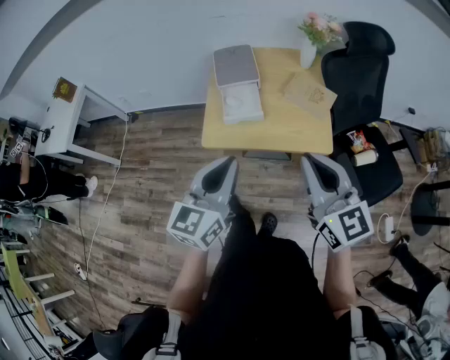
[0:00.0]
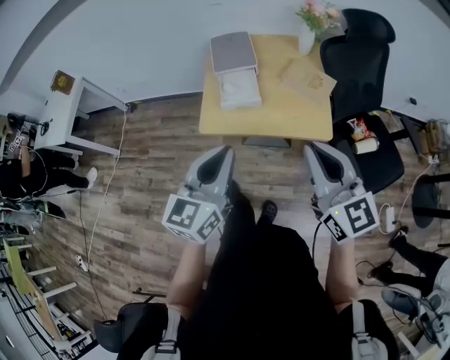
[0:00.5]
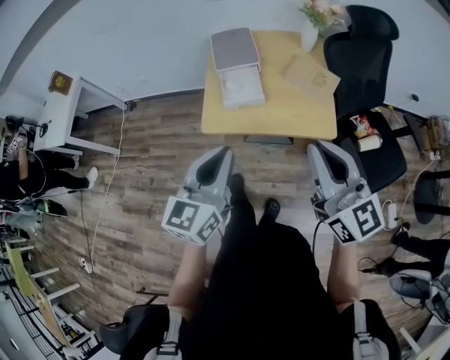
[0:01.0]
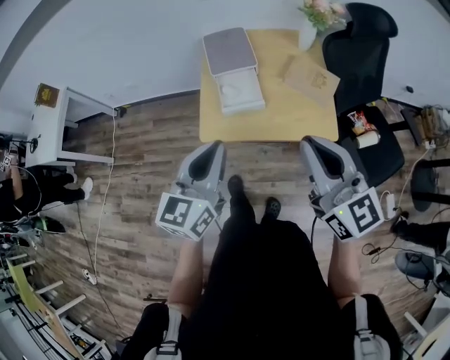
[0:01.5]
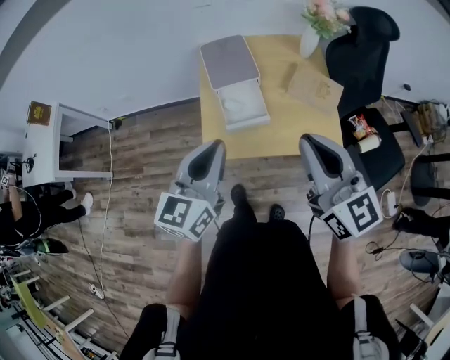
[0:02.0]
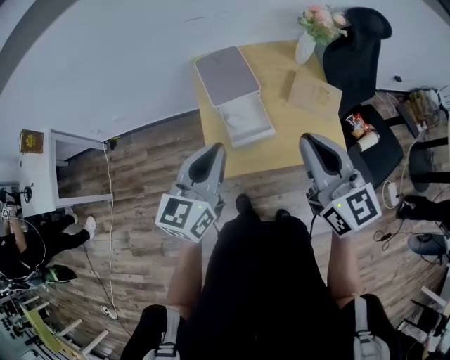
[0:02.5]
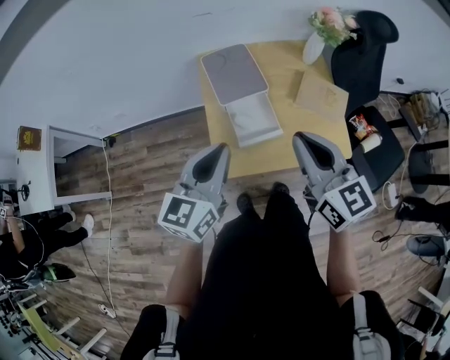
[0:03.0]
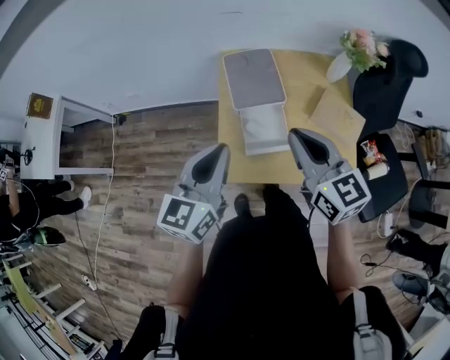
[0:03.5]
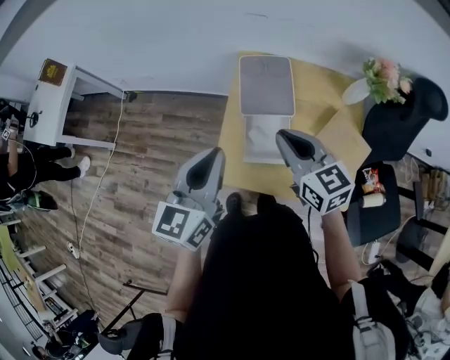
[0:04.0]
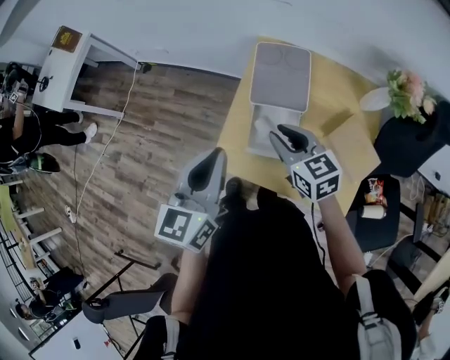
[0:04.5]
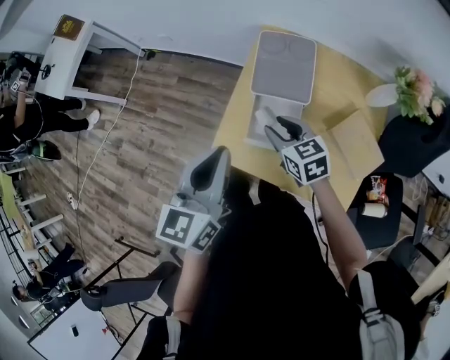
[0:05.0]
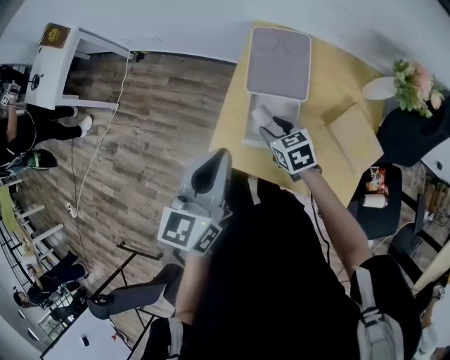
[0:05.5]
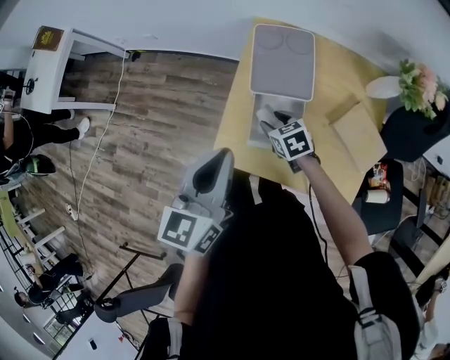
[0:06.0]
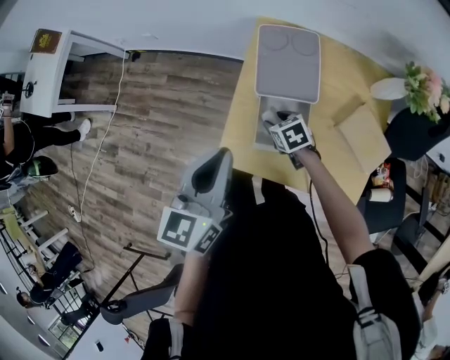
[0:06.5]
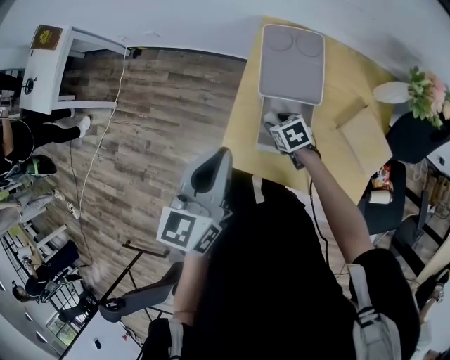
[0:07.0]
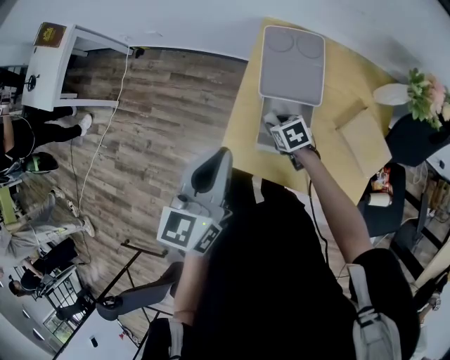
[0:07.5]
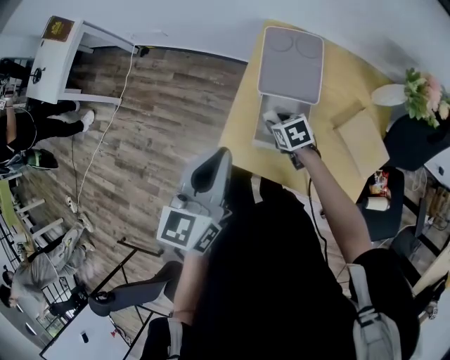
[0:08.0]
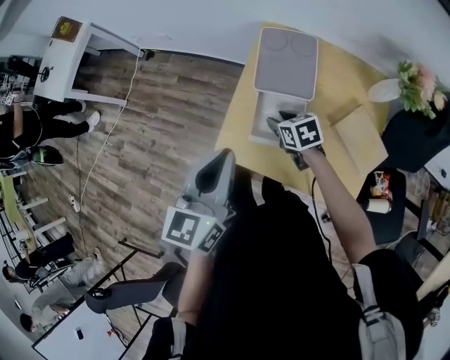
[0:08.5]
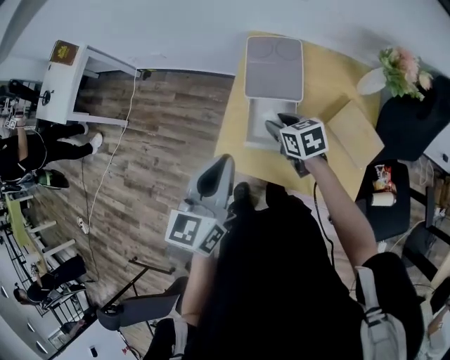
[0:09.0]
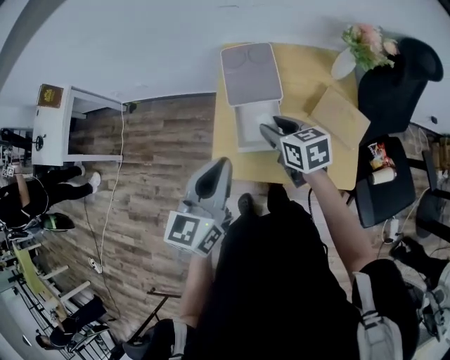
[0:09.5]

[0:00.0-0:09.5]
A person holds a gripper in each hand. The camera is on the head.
0:00.0 to 0:02.0: Both grippers move forward and to the left, some 15 cm.
0:02.0 to 0:04.0: The left gripper shifts by roughly 15 cm; the right gripper shifts by roughly 25 cm, and changes its angle by approximately 30 degrees.
0:04.0 to 0:05.5: The right gripper travels downward by roughly 20 cm, changes its angle by roughly 30 degrees, and opens its fingers; the left gripper shifts by some 5 cm.
0:05.5 to 0:07.5: The left gripper shifts by some 5 cm. The right gripper is displaced downward by about 10 cm.
0:07.5 to 0:09.5: The left gripper moves backward, about 10 cm. The right gripper travels upward by some 20 cm, and turns by some 30 degrees.

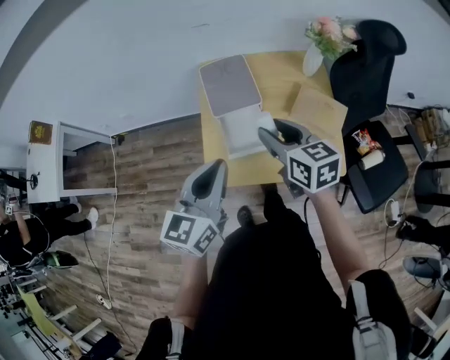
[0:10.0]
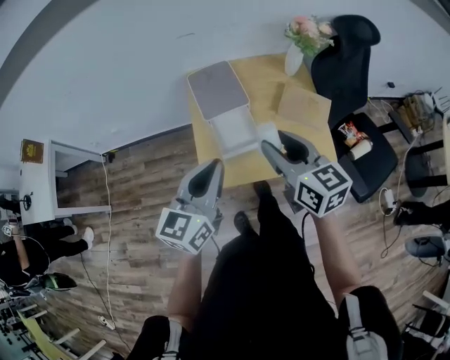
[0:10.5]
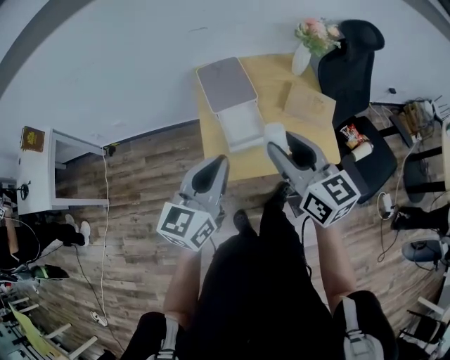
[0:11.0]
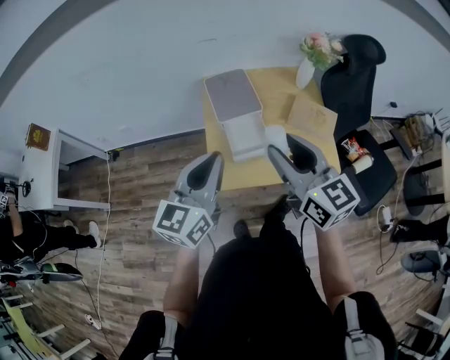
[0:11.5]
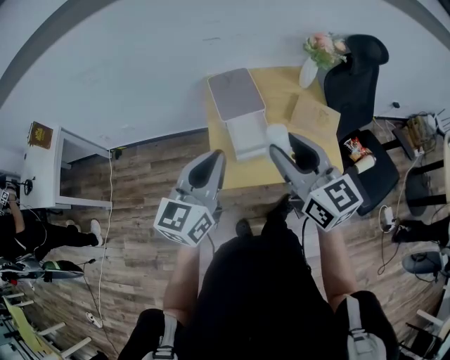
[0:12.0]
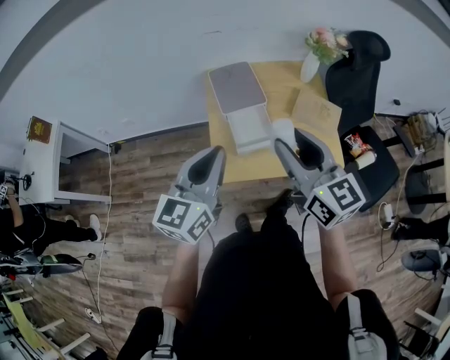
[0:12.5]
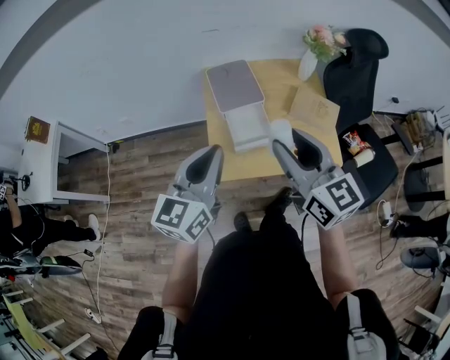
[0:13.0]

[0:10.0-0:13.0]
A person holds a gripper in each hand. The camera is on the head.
0:10.0 to 0:11.5: The right gripper shifts approximately 15 cm backward and upward, and swivels approximately 20 degrees. Meanwhile the left gripper is displaced to the left by about 5 cm.
0:11.5 to 0:13.0: There are only small adjustments of the grippers.

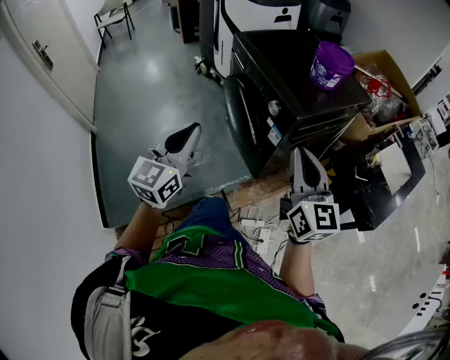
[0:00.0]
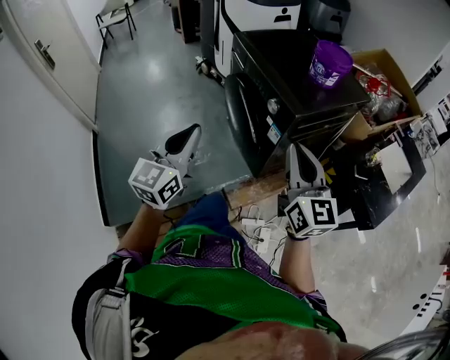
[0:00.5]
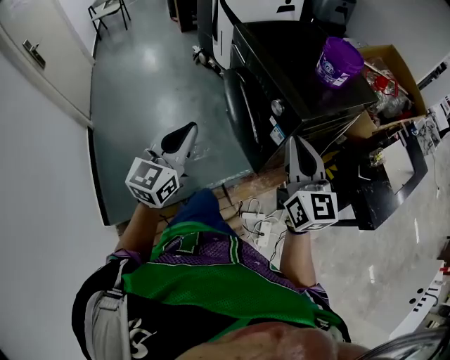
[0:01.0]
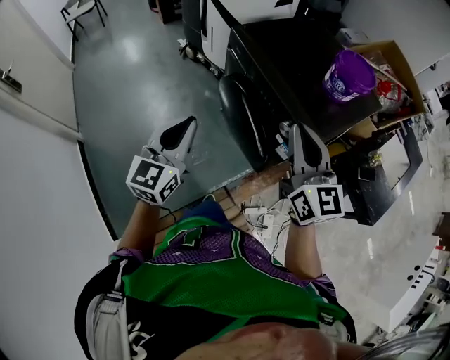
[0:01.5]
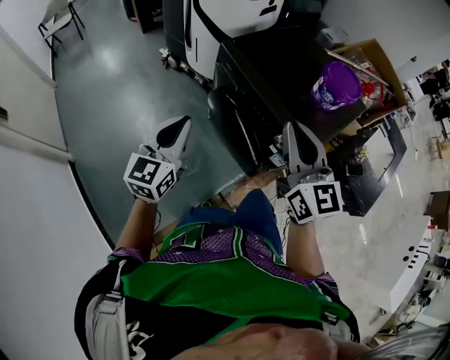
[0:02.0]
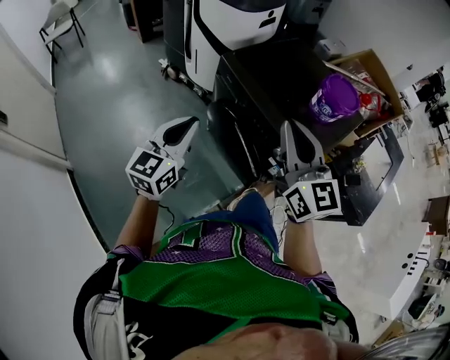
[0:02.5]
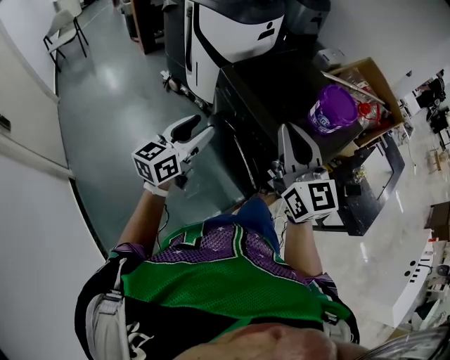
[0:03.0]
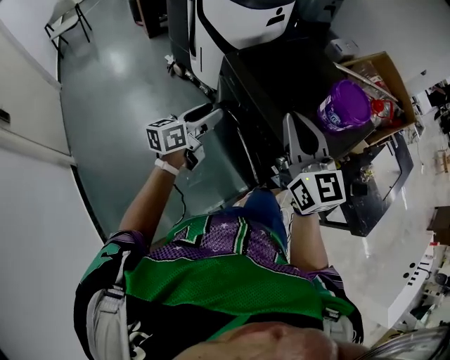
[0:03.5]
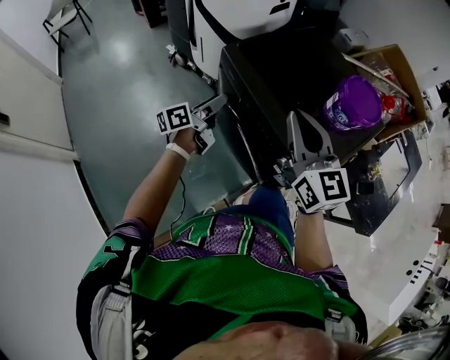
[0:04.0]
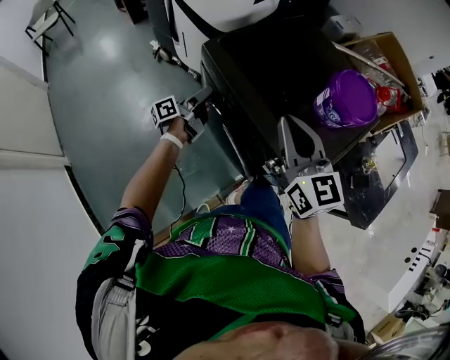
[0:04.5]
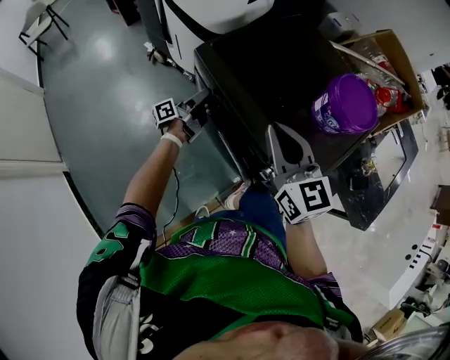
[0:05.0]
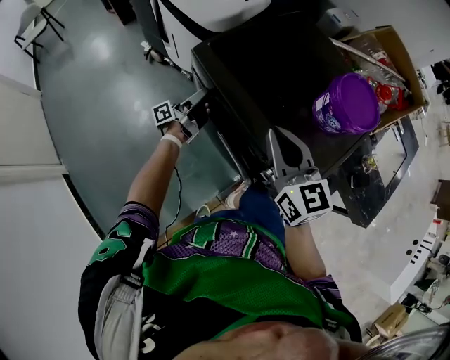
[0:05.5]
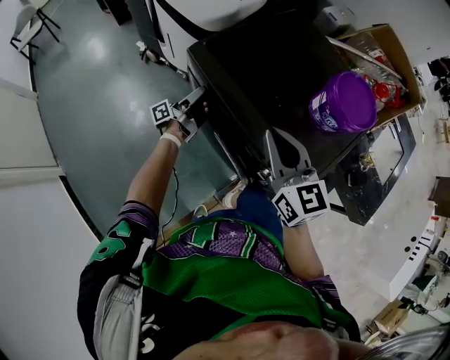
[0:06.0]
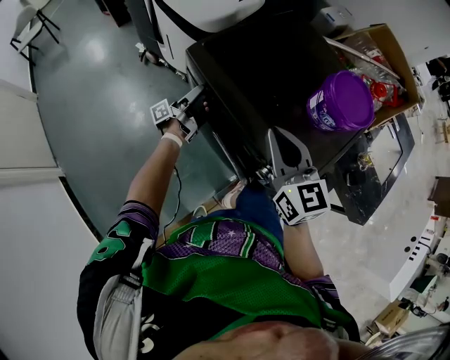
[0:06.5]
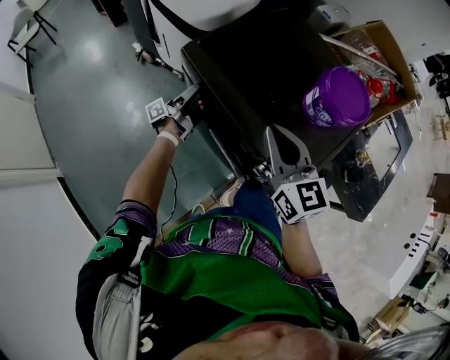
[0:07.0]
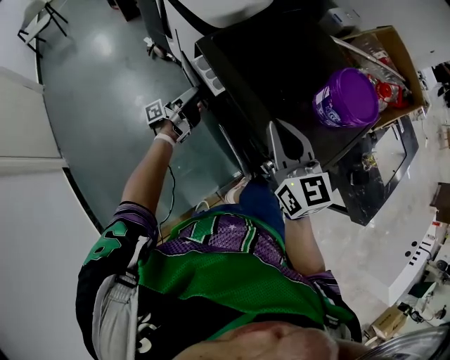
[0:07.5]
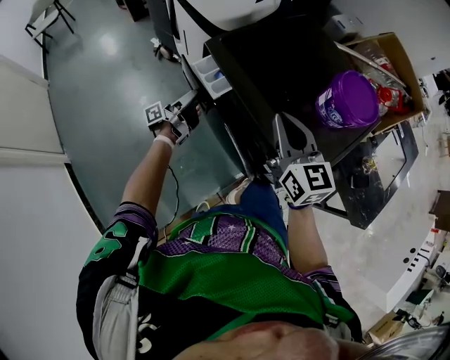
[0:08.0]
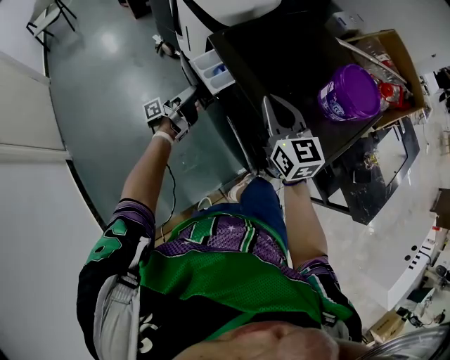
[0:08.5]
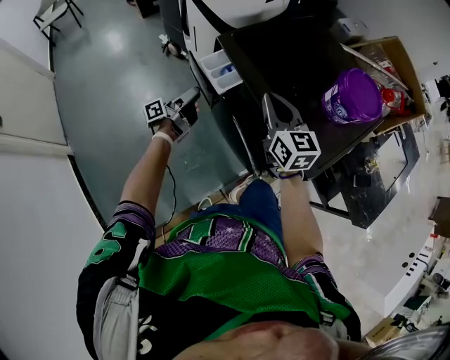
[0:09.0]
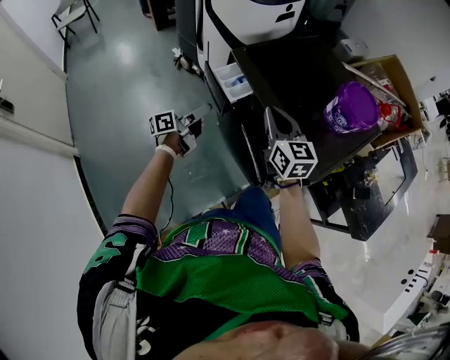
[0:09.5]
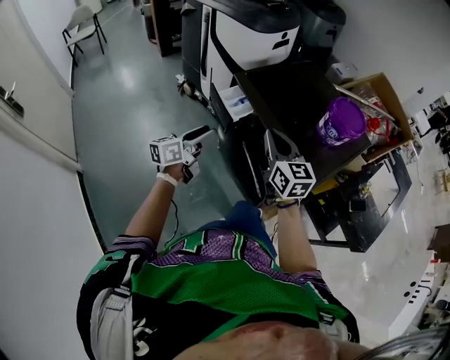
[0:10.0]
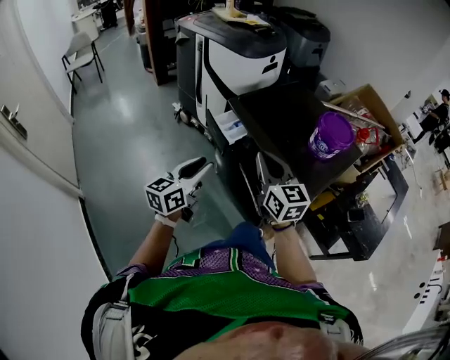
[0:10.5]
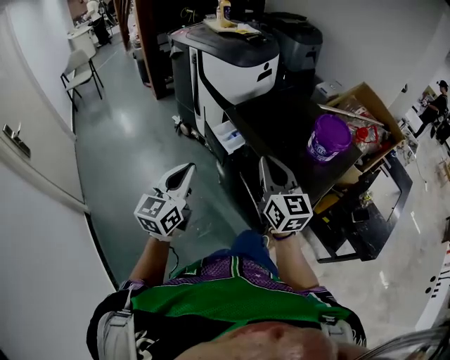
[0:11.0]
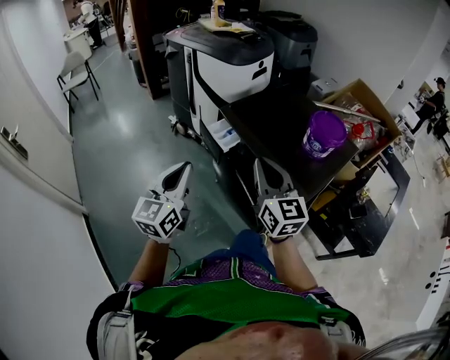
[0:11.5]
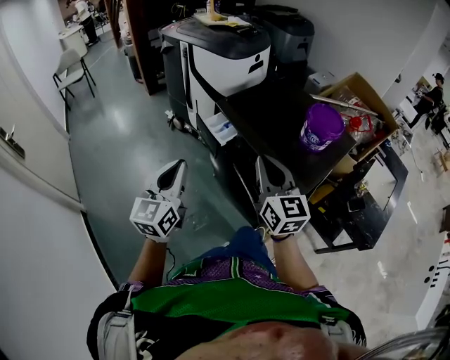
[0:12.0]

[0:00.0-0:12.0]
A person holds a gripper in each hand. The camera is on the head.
0:00.0 to 0:02.0: The right gripper goes roughly 30 cm forward, to the left and upward. Meanwhile the left gripper goes some 30 cm forward and to the left.
0:02.0 to 0:04.0: The left gripper goes some 25 cm forward and downward, rotates around the line of its fingers by approximately 60 degrees, counterclockwise from behind, and opens its fingers. Meanwhile the right gripper travels forward by roughly 15 cm.
0:04.0 to 0:06.0: The right gripper shifts about 10 cm downward and forward, while the left gripper travels downward and forward by roughly 20 cm, and rotates roughly 30 degrees.
0:06.0 to 0:08.0: The left gripper moves backward and to the left, approximately 10 cm.
0:08.0 to 0:10.0: The left gripper travels backward and upward by roughly 25 cm, and rolls clockwise, seen from behind, by some 50 degrees. Meanwhile the right gripper travels backward and to the left by approximately 10 cm.
0:10.0 to 0:12.0: The left gripper heads upward and backward, covering about 20 cm, changes its angle by about 40 degrees, and closes its fingers. The right gripper goes approximately 10 cm backward and upward.

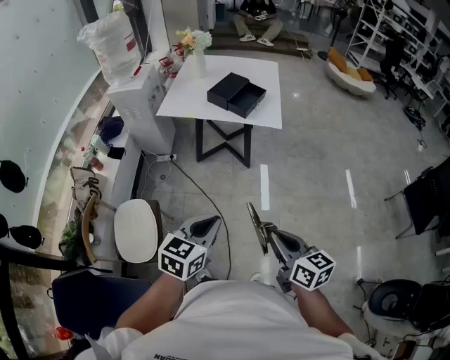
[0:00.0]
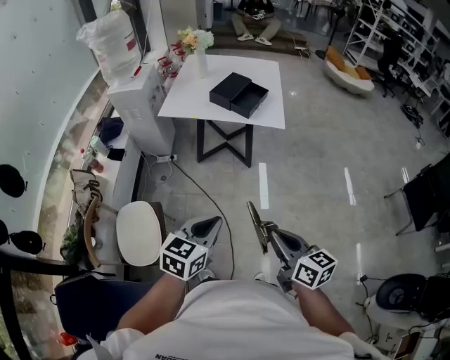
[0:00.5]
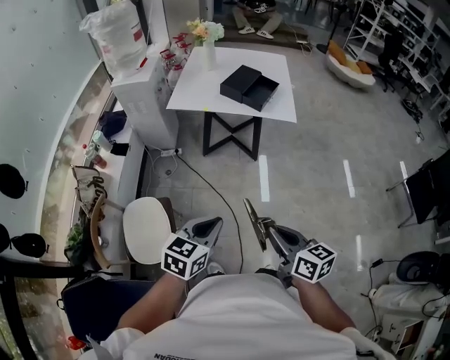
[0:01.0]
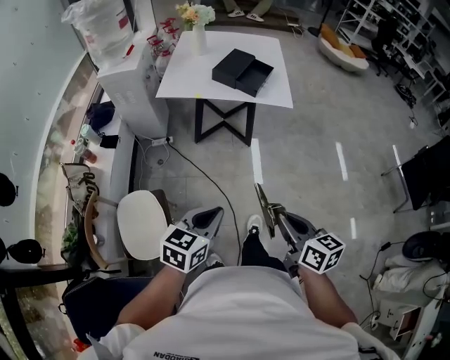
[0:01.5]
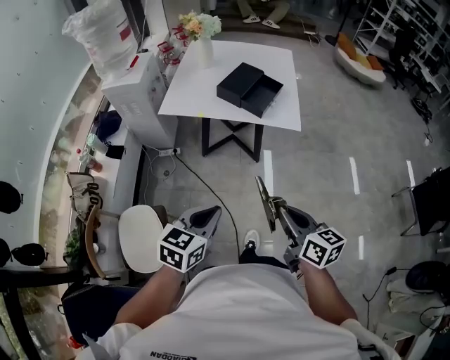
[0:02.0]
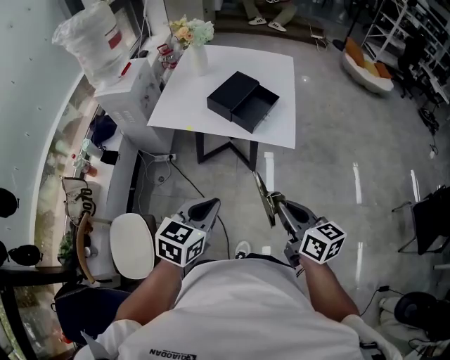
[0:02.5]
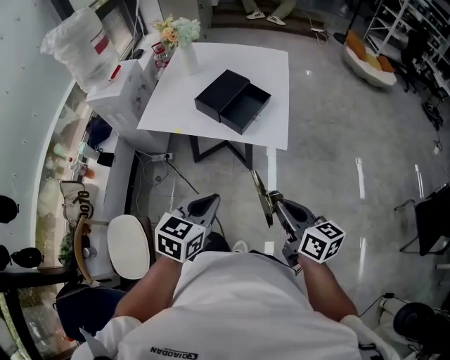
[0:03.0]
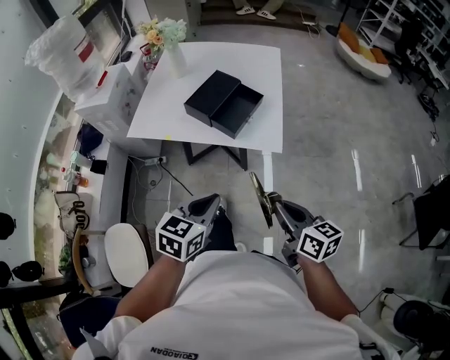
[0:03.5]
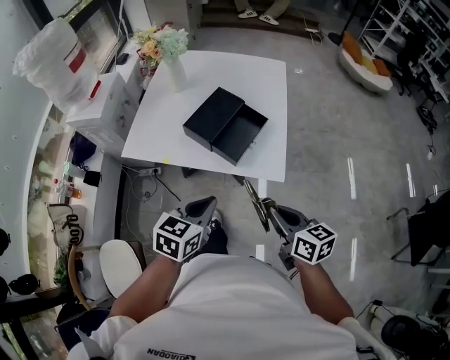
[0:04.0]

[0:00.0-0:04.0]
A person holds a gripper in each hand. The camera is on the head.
0:00.0 to 0:02.0: The left gripper goes roughly 15 cm forward and to the left, while the right gripper shifts about 15 cm forward.
0:02.0 to 0:04.0: Both grippers move forward, about 30 cm.
